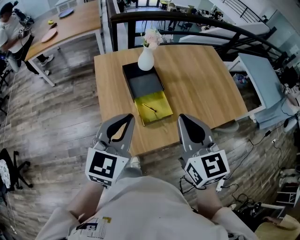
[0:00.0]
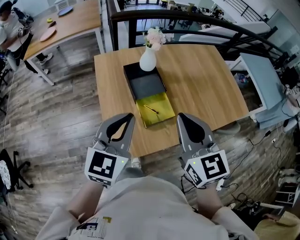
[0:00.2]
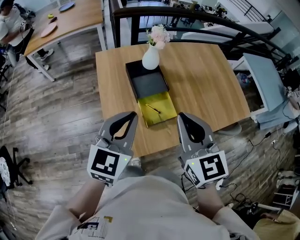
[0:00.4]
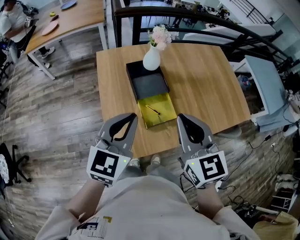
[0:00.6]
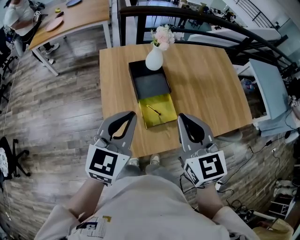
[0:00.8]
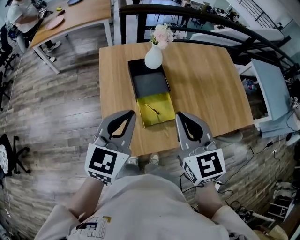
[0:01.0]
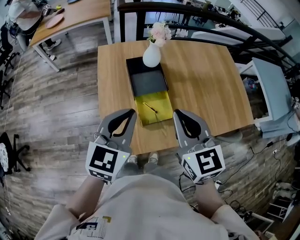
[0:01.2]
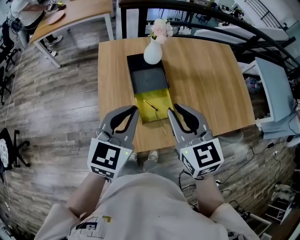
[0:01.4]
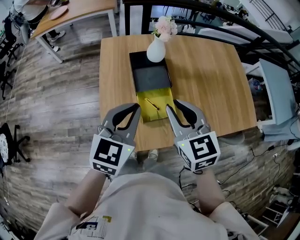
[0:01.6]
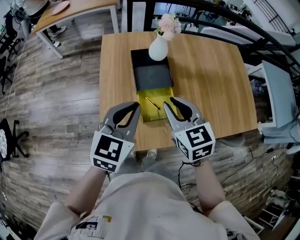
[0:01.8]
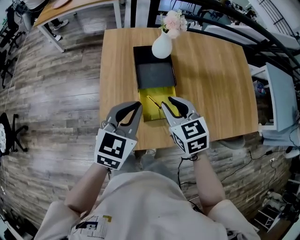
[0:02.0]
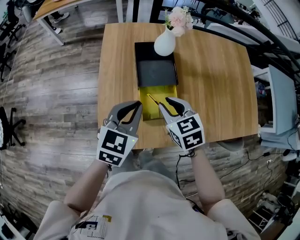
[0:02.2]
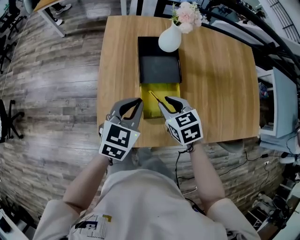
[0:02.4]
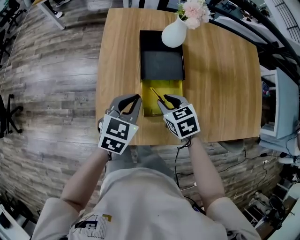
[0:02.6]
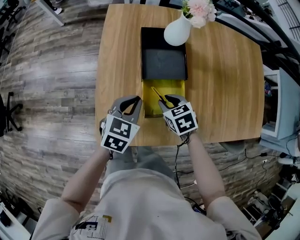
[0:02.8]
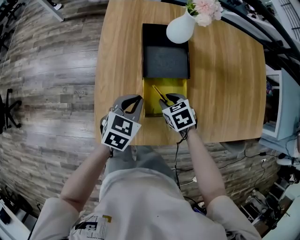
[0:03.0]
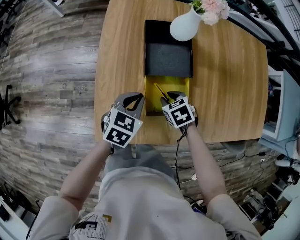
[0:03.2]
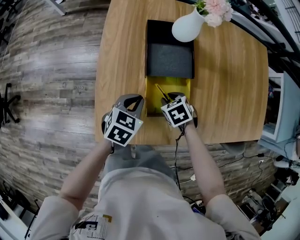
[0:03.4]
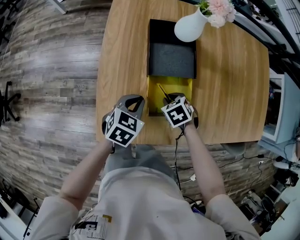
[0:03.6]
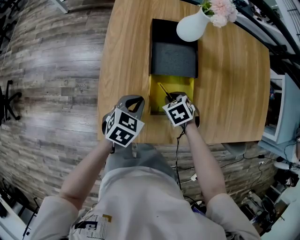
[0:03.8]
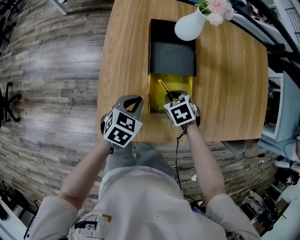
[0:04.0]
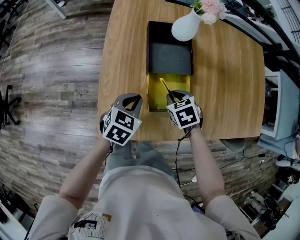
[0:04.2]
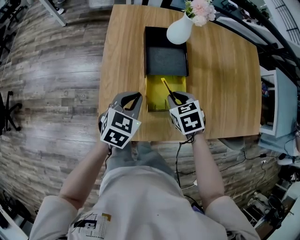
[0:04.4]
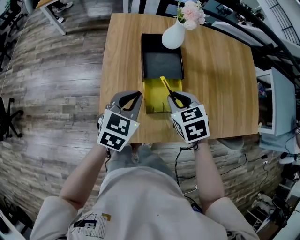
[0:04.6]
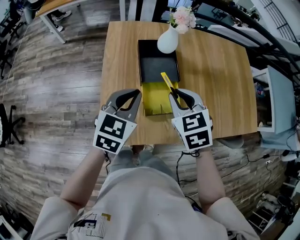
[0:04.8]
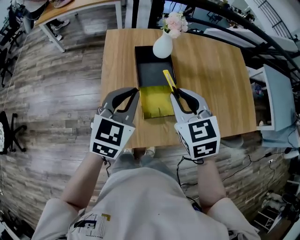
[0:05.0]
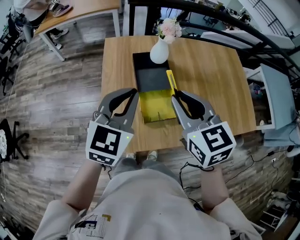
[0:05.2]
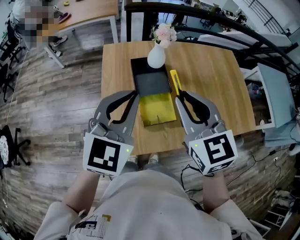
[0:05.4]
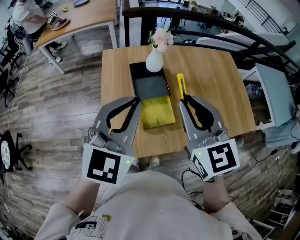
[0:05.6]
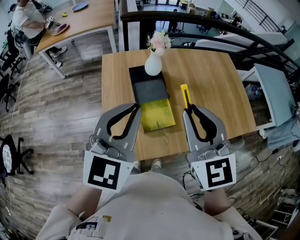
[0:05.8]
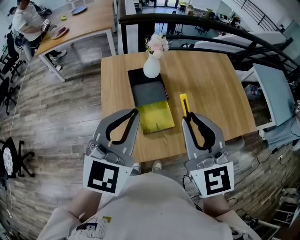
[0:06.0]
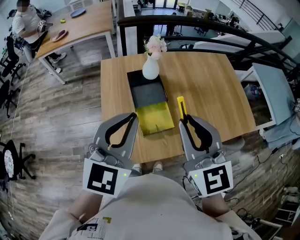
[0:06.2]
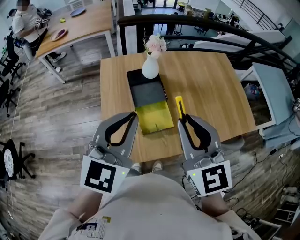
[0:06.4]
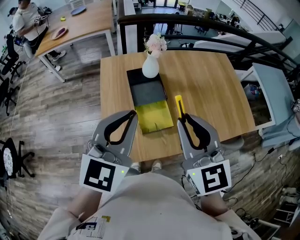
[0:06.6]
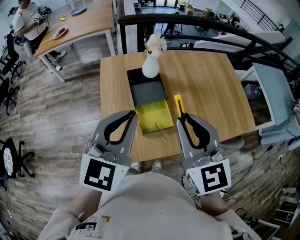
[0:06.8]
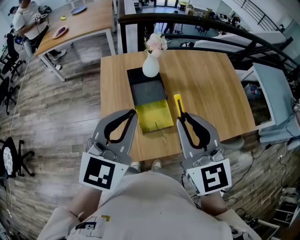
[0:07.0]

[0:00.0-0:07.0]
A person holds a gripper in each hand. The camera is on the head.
0:00.0 to 0:01.4: Both grippers travel together forward, roughly 10 cm.
0:01.4 to 0:02.8: Both grippers travel together downward, approximately 30 cm. The right gripper points its fingers approximately 40 degrees further downward; the left gripper swivels roughly 20 degrees.
0:02.8 to 0:04.2: The right gripper goes downward and returns, some 10 cm each way.
0:04.2 to 0:05.6: The grippers both shift upward by approximately 40 cm. The left gripper angles its fingers upward, by some 40 degrees; the right gripper tips its fingers upward by approximately 50 degrees.
0:05.6 to 0:07.0: The grippers move only a little.

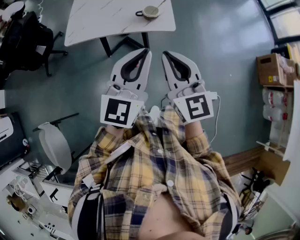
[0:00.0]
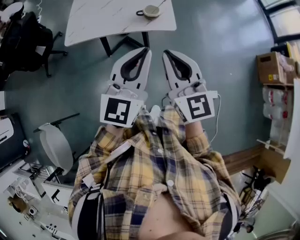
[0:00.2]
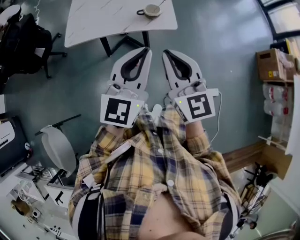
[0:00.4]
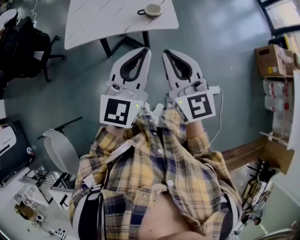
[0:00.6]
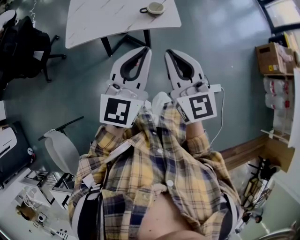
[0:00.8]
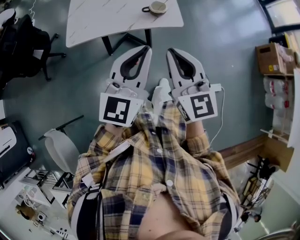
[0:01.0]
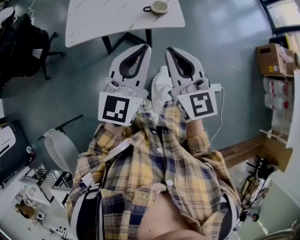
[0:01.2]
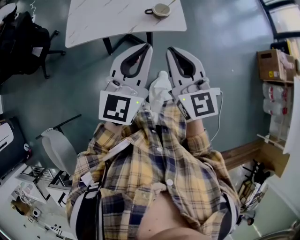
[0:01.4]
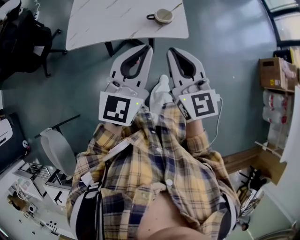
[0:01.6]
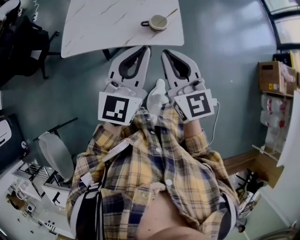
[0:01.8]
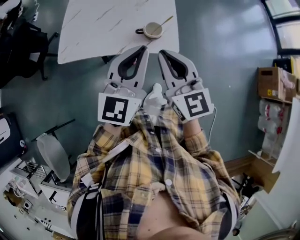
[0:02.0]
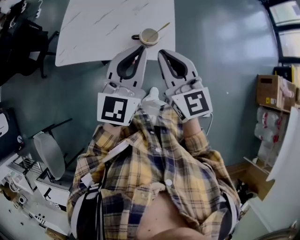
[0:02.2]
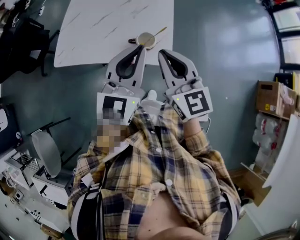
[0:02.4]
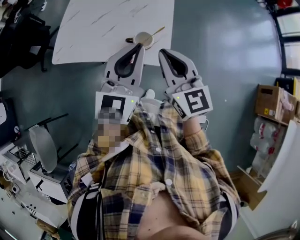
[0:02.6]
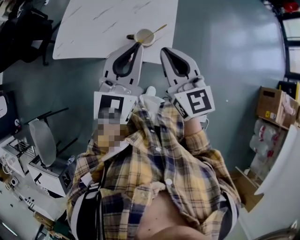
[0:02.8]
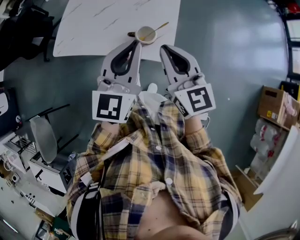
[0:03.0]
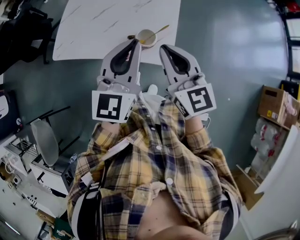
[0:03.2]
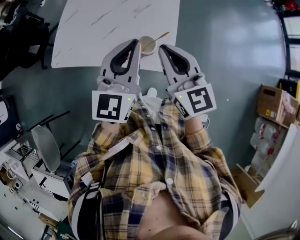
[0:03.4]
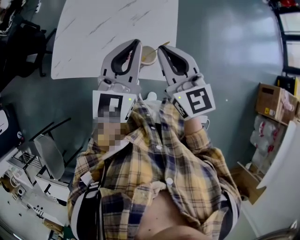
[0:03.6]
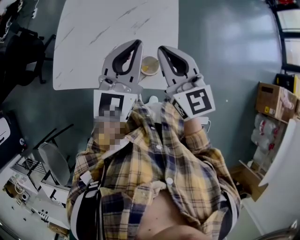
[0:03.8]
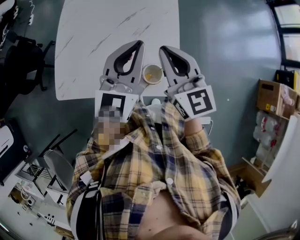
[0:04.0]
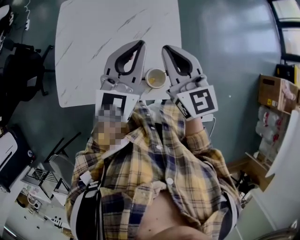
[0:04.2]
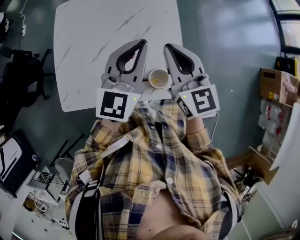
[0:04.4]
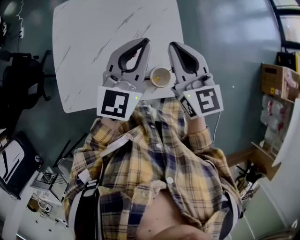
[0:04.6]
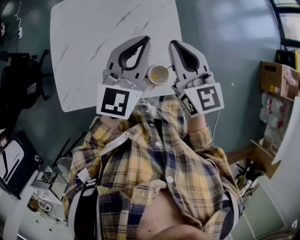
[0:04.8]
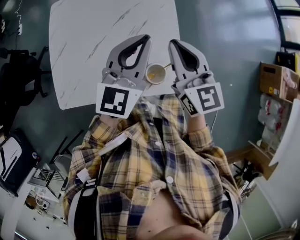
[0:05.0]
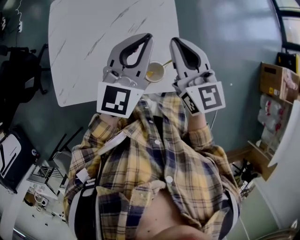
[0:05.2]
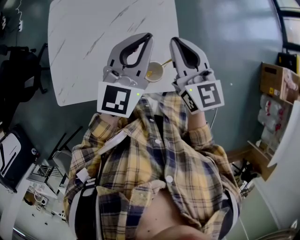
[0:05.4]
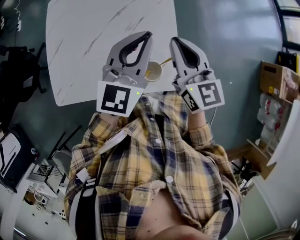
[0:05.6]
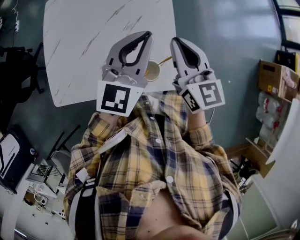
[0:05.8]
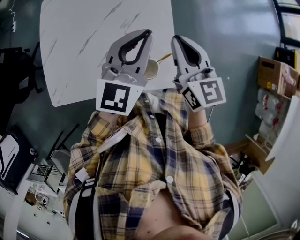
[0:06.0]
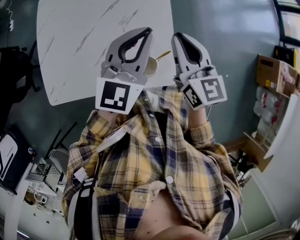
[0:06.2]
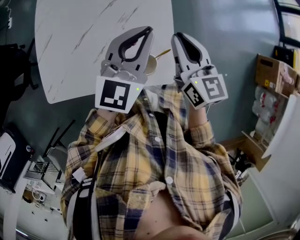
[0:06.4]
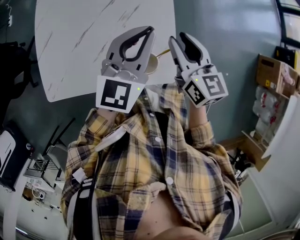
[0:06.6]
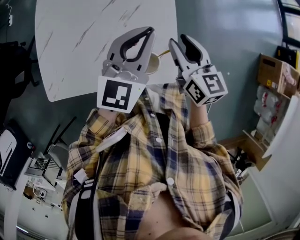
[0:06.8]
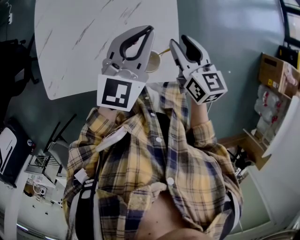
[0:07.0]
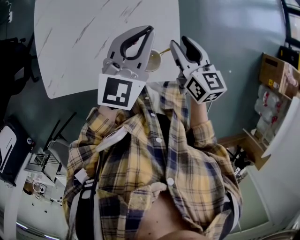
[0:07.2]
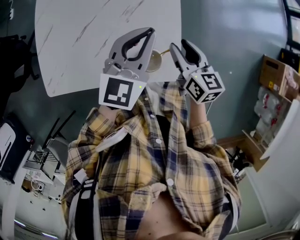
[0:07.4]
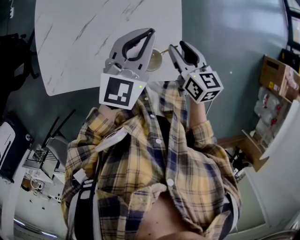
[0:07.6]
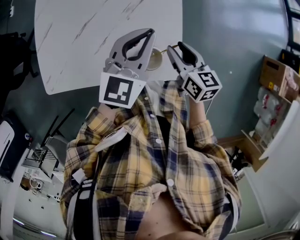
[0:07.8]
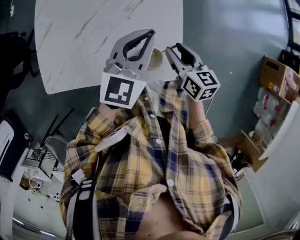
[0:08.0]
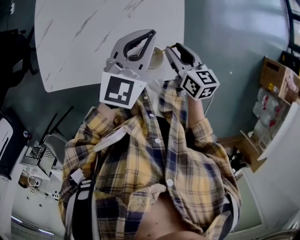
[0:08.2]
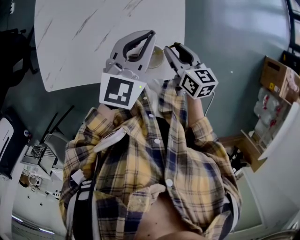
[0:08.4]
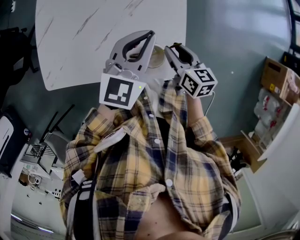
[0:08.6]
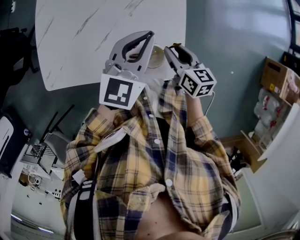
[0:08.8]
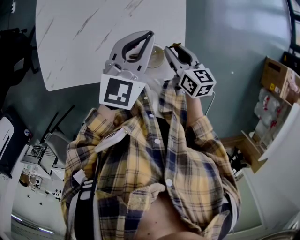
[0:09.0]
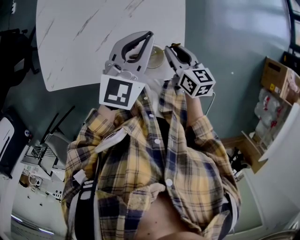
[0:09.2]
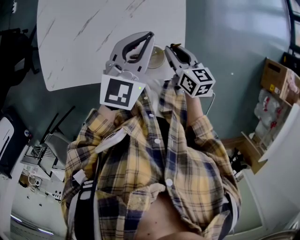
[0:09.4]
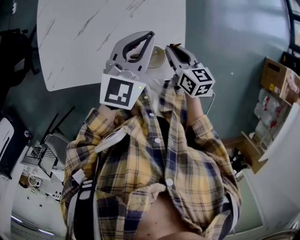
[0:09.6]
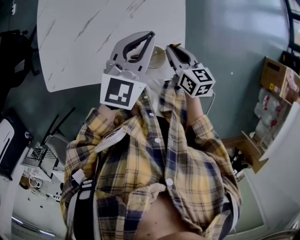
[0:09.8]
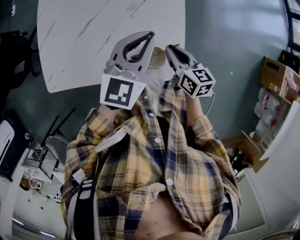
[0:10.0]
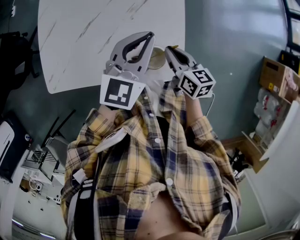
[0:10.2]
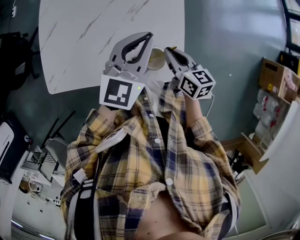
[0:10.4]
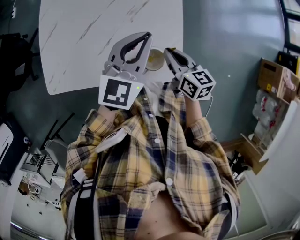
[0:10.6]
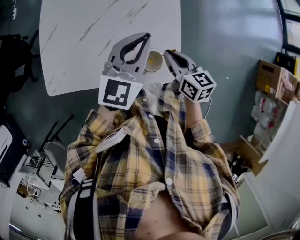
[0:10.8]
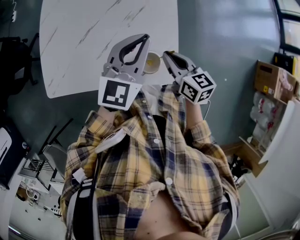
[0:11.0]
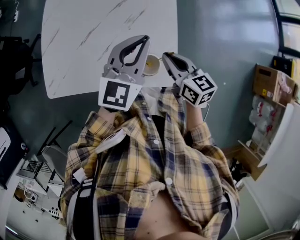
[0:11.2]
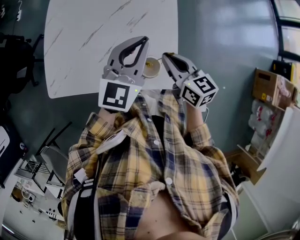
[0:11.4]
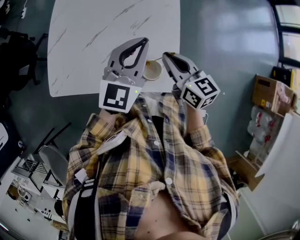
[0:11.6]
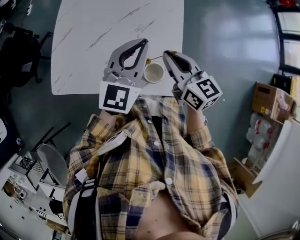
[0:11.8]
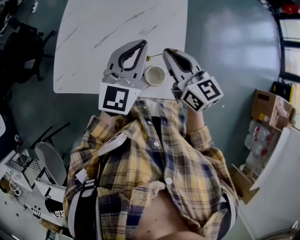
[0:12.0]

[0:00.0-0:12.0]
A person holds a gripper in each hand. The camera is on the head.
0:00.0 to 0:01.6: The left gripper goes approximately 10 cm forward and to the left. The right gripper goes about 10 cm forward.
0:01.6 to 0:03.0: The two grippers go roughly 20 cm forward and to the right.
0:03.0 to 0:04.4: The two grippers go roughly 20 cm forward.
0:04.4 to 0:06.0: Both grippers travel together to the right, approximately 5 cm.
0:06.0 to 0:07.6: The left gripper shifts approximately 5 cm downward; the right gripper shifts approximately 15 cm downward, turns by roughly 20 degrees, and opens.
0:07.6 to 0:09.0: The right gripper moves downward, approximately 5 cm.
0:09.0 to 0:10.4: The right gripper closes.
0:10.4 to 0:12.0: The left gripper is displaced upward by roughly 5 cm. The right gripper heads upward, covering about 15 cm, and swivels about 30 degrees.

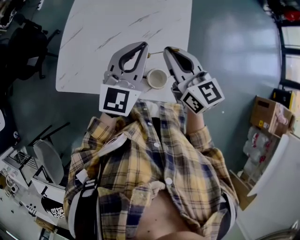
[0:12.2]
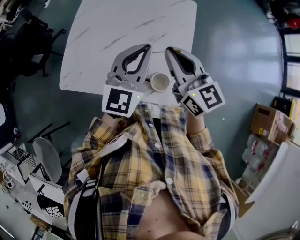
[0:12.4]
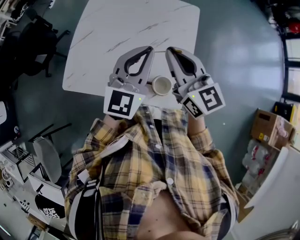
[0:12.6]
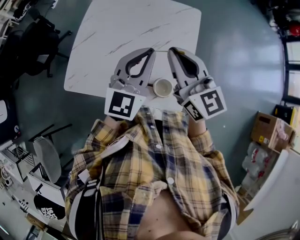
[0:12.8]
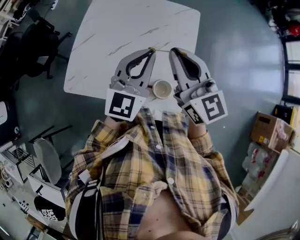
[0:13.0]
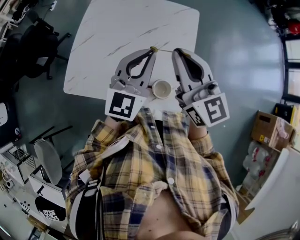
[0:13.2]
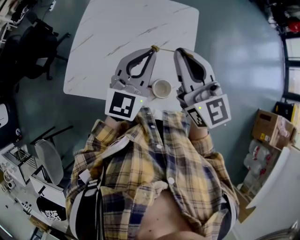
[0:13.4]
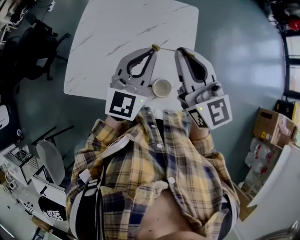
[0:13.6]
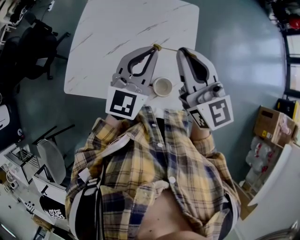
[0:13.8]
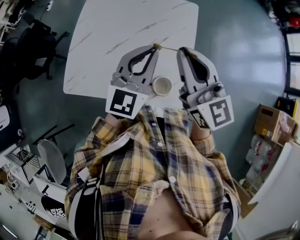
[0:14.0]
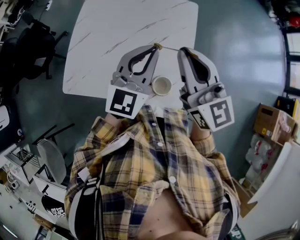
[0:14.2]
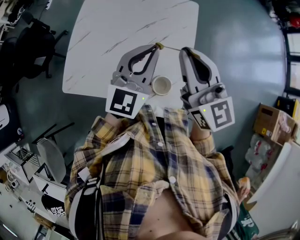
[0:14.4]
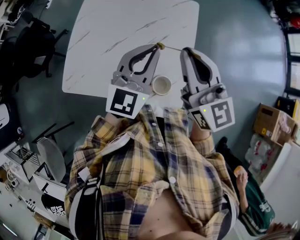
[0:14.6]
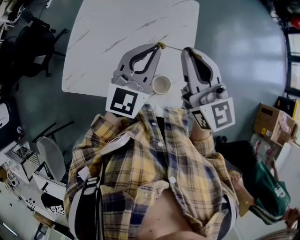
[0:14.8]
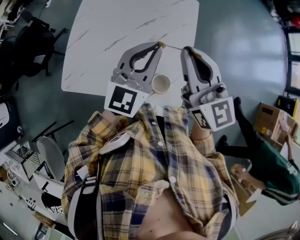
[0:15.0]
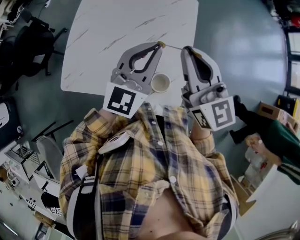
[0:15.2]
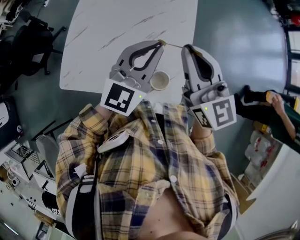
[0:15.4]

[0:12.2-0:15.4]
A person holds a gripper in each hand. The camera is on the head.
0:12.2 to 0:13.8: The right gripper moves upward, roughly 10 cm.
0:13.8 to 0:15.4: There are only small adjustments of the grippers.

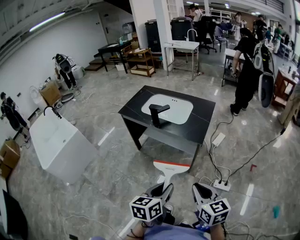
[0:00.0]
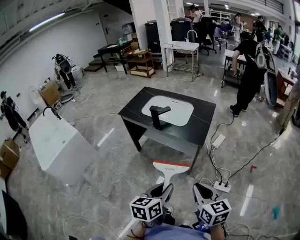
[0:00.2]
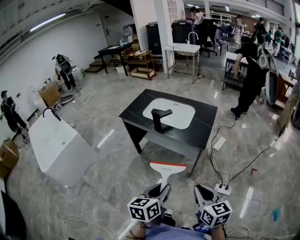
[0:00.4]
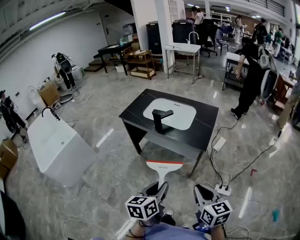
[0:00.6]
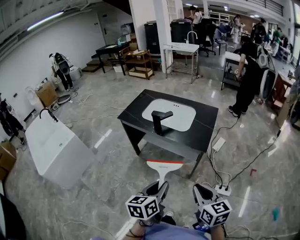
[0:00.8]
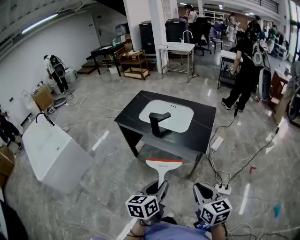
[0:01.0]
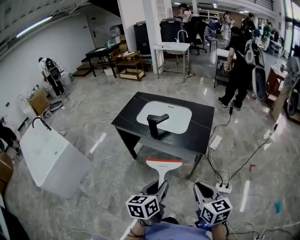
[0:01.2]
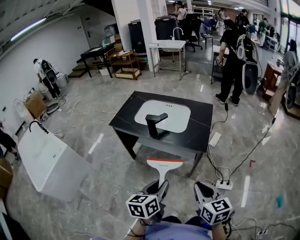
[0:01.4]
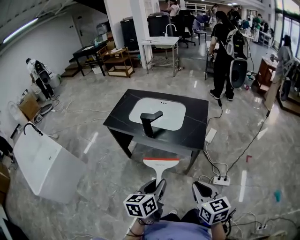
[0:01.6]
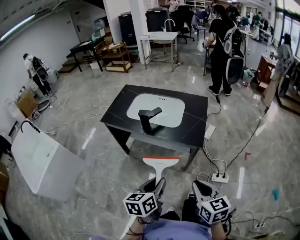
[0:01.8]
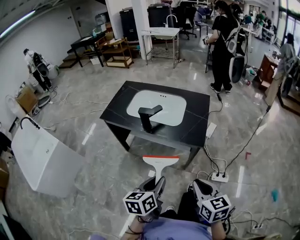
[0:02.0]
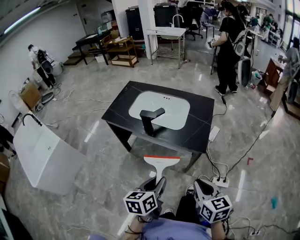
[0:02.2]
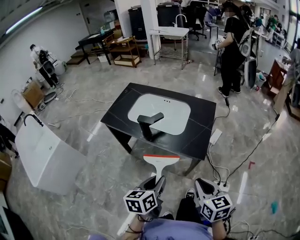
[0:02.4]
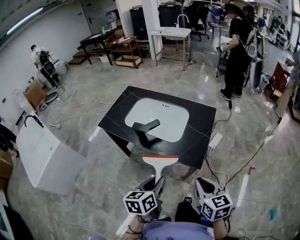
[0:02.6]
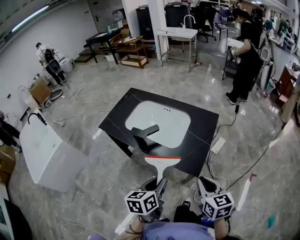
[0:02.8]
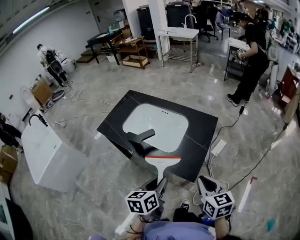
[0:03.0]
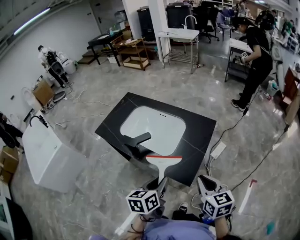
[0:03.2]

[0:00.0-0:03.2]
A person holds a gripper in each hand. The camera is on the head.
0:00.0 to 0:01.6: Both grippers move forward and to the left, approximately 15 cm.
0:01.6 to 0:03.2: The grippers both shift forward and to the right by about 30 cm.
